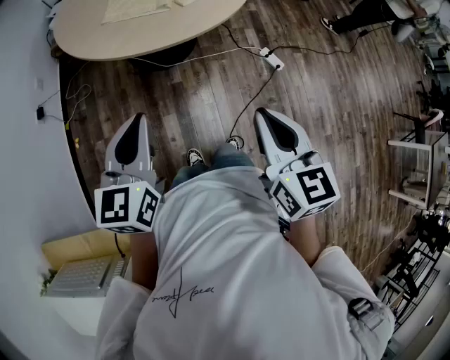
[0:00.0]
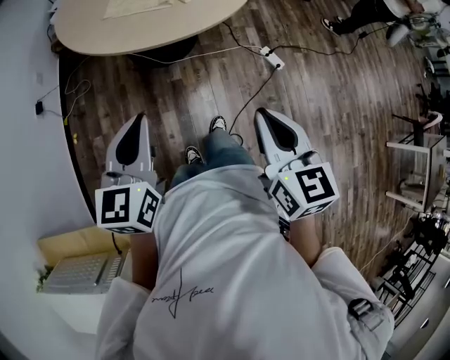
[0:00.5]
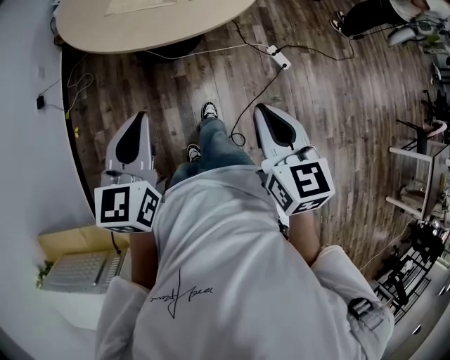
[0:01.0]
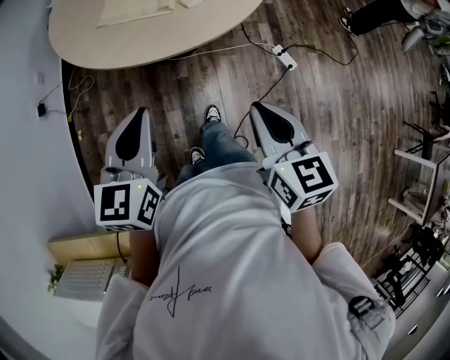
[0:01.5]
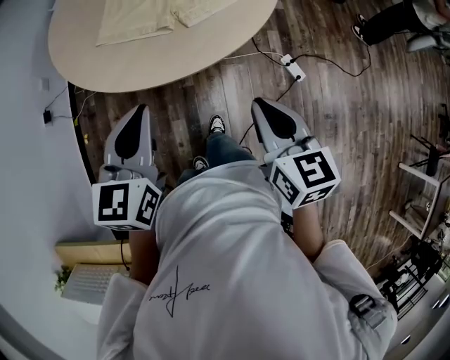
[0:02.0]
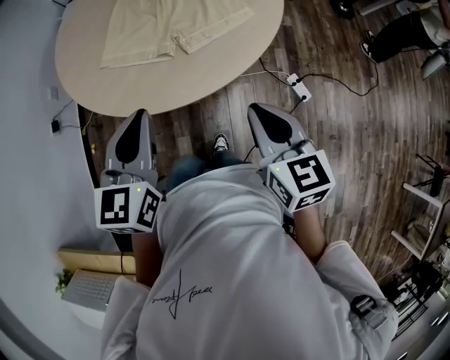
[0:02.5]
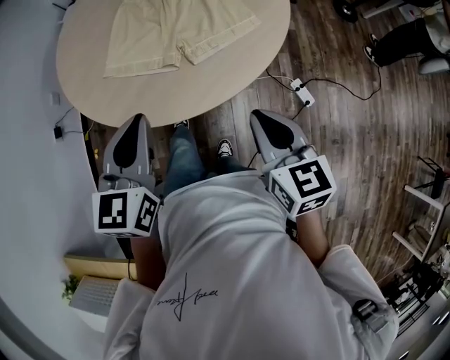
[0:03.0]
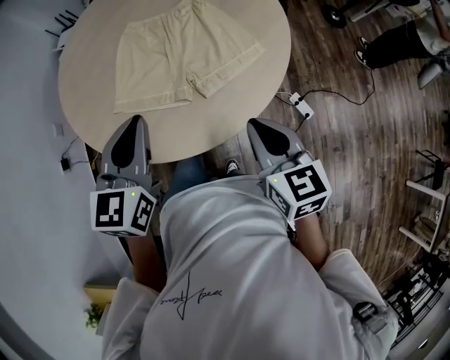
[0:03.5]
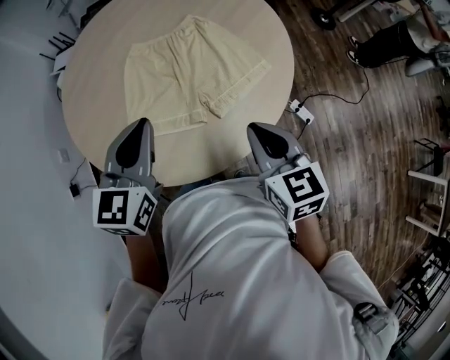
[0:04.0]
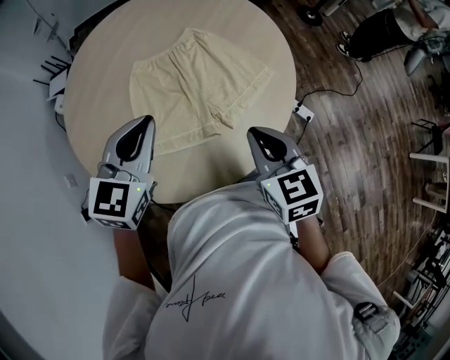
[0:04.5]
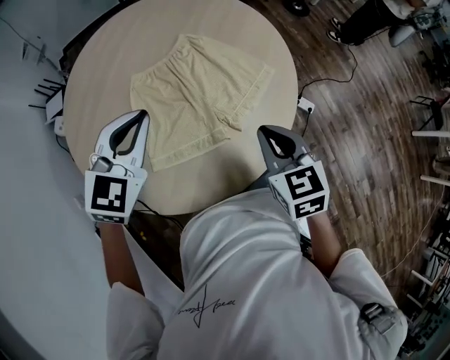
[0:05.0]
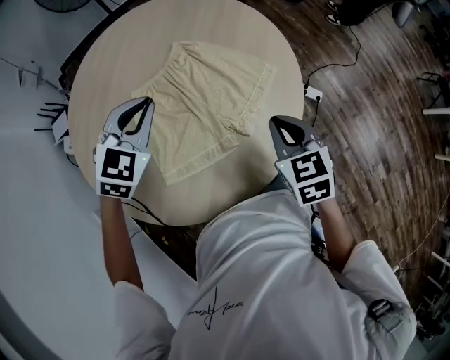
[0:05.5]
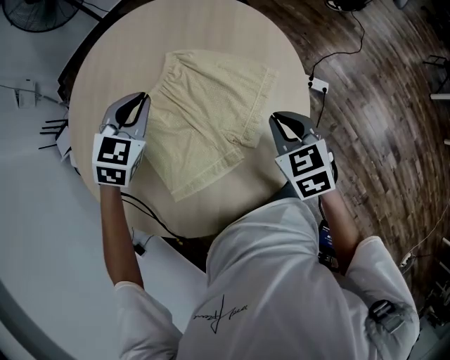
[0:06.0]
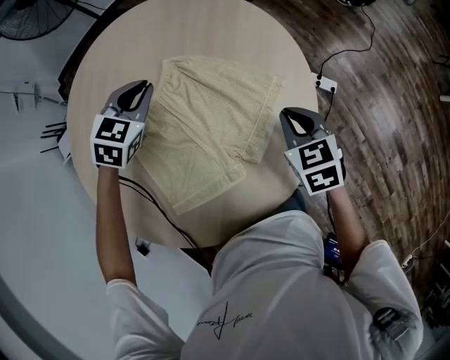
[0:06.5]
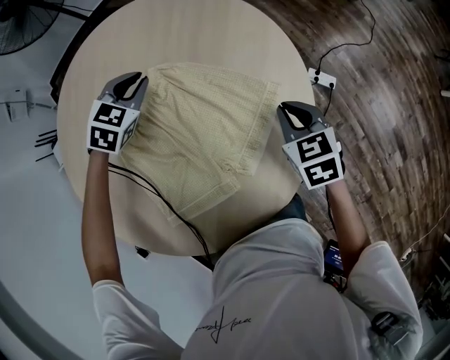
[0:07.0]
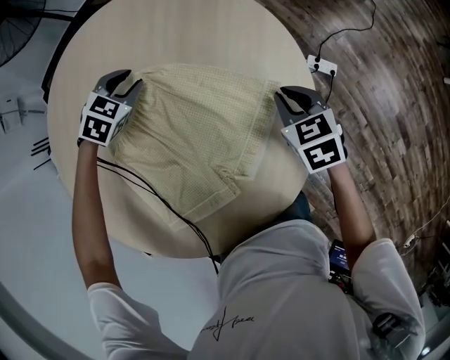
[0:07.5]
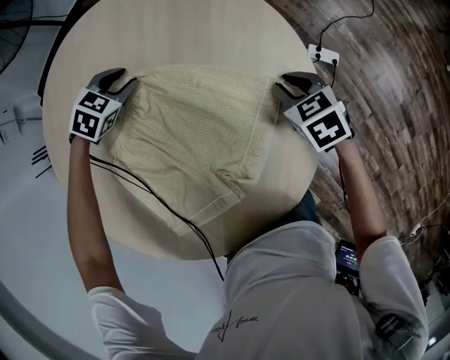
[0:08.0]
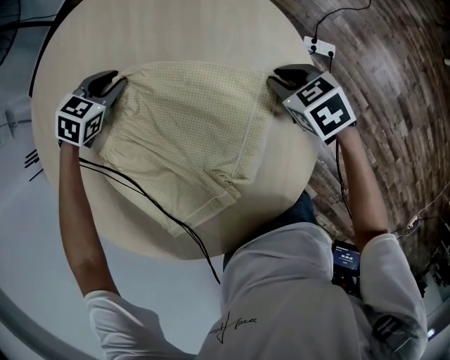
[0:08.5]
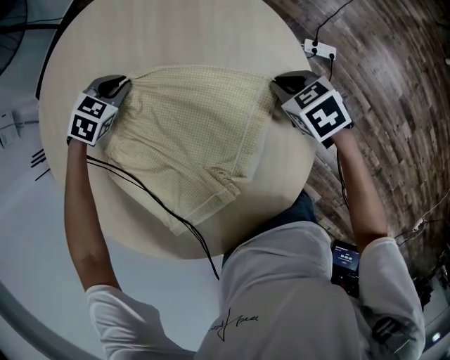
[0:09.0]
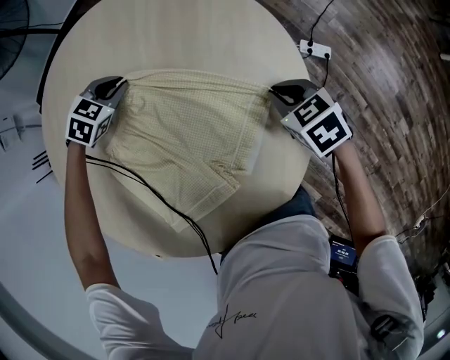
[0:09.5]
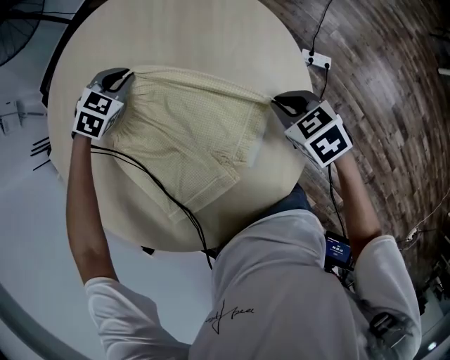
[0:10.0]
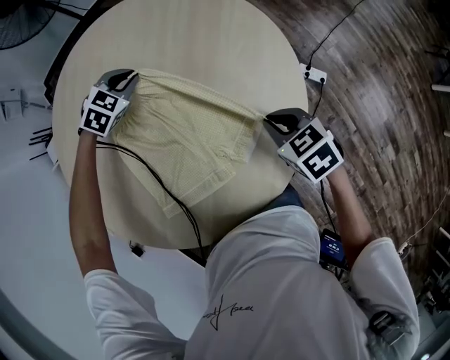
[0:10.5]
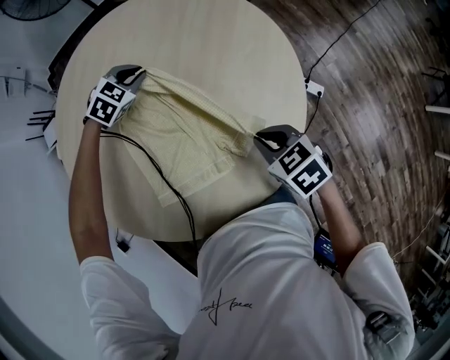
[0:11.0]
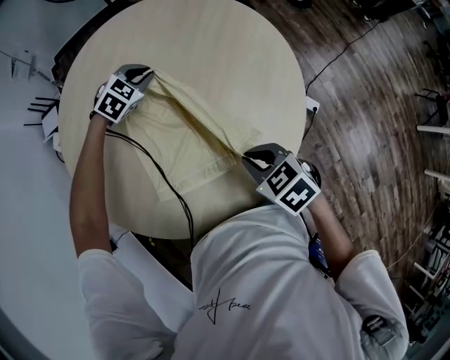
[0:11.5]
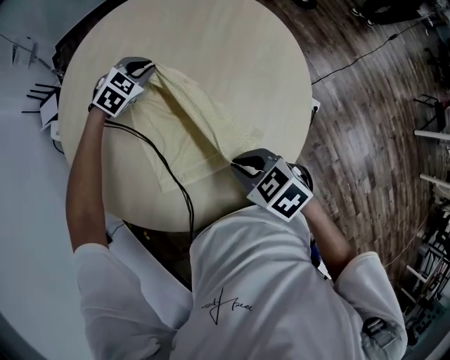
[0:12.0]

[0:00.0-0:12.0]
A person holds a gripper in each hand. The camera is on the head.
0:00.0 to 0:02.0: The two grippers go about 25 cm forward.
0:02.0 to 0:04.0: The grippers both shift forward by about 25 cm.
0:04.0 to 0:06.0: The left gripper changes place by approximately 30 cm, and turns by some 50 degrees. The right gripper ends up approximately 15 cm from where it was, and changes its angle by approximately 30 degrees.
0:06.0 to 0:08.0: Both grippers travel together downward and forward, roughly 25 cm. The left gripper turns by some 30 degrees, and opens up.
0:08.0 to 0:10.0: The left gripper shifts roughly 5 cm upward, while the right gripper moves backward and upward, approximately 10 cm.
0:10.0 to 0:12.0: The left gripper travels to the left and backward by about 15 cm; the right gripper travels to the left, backward and upward by about 30 cm, and turns by approximately 20 degrees.

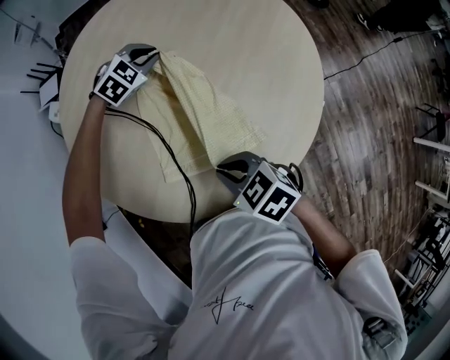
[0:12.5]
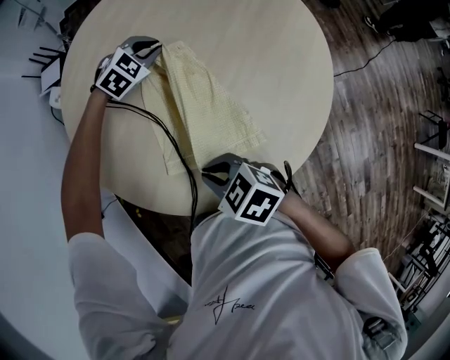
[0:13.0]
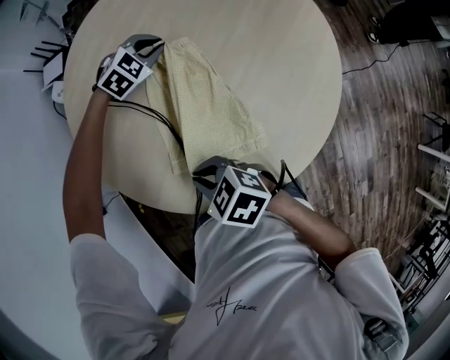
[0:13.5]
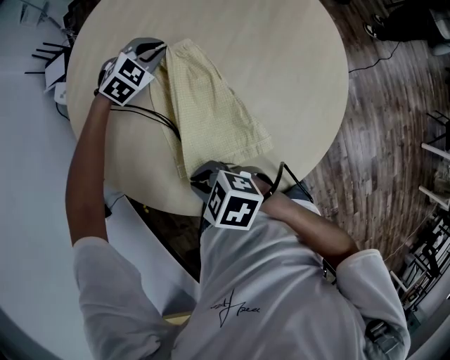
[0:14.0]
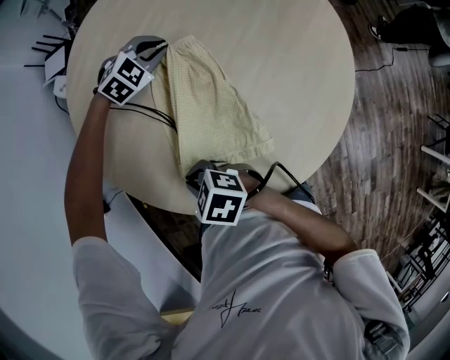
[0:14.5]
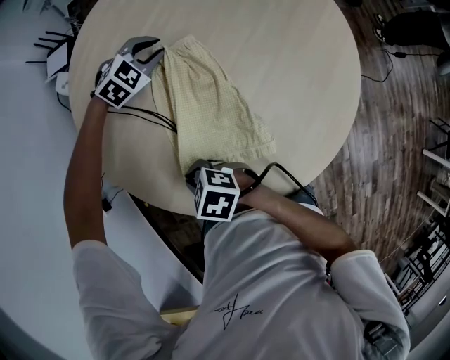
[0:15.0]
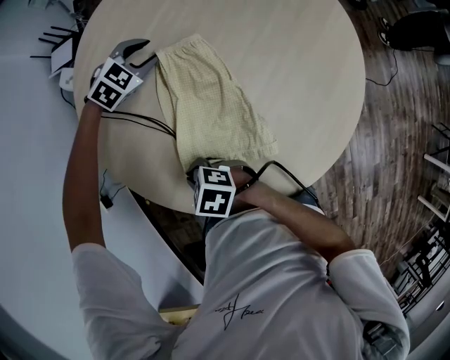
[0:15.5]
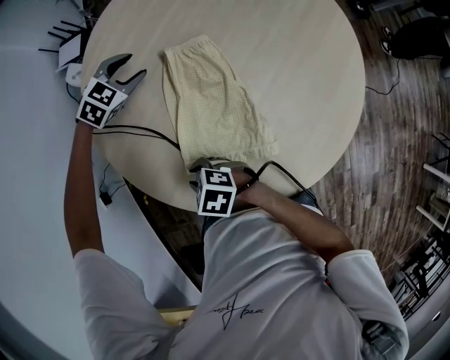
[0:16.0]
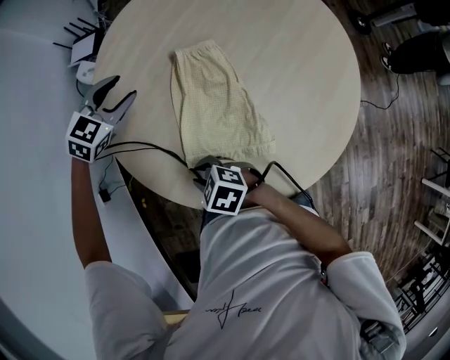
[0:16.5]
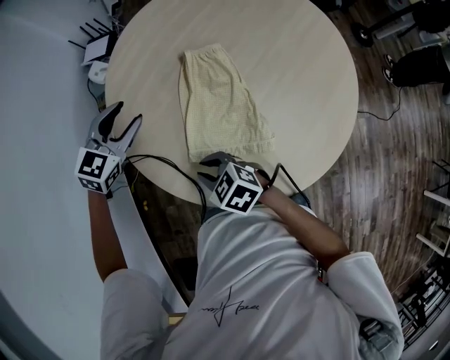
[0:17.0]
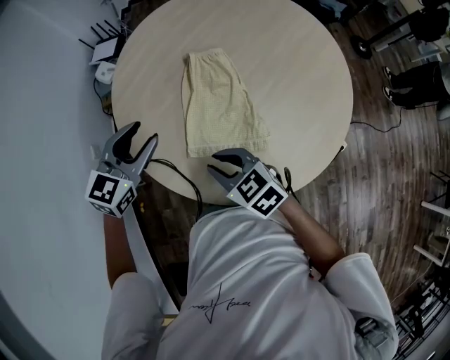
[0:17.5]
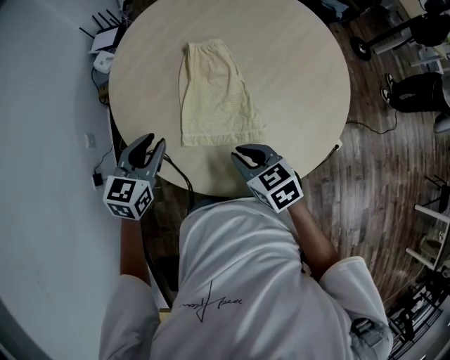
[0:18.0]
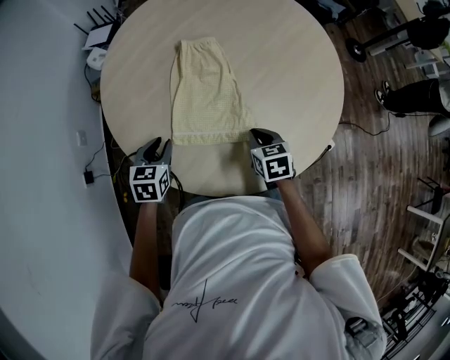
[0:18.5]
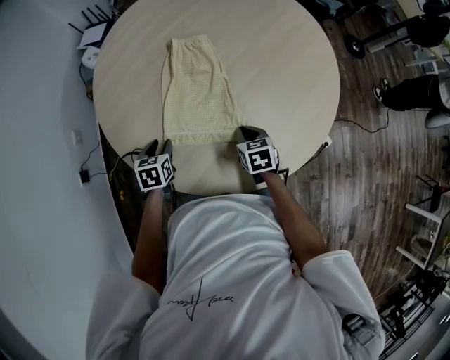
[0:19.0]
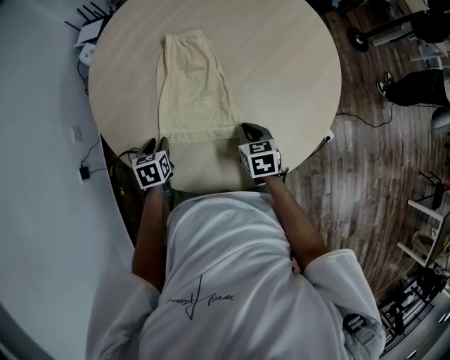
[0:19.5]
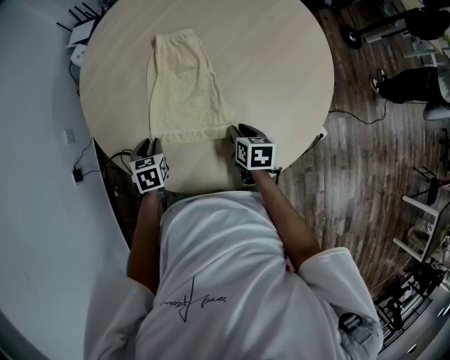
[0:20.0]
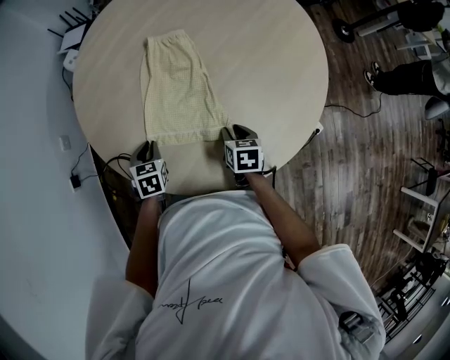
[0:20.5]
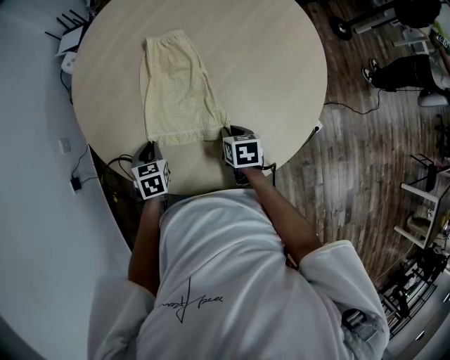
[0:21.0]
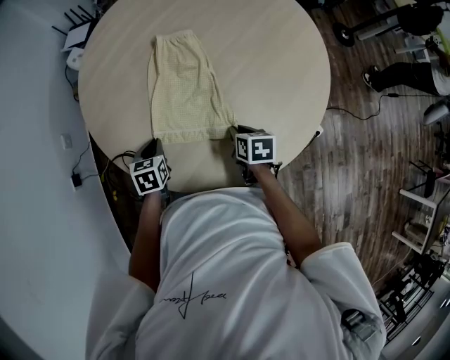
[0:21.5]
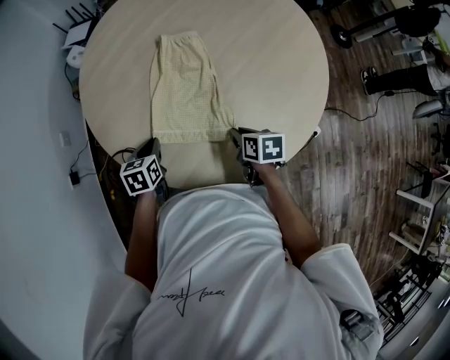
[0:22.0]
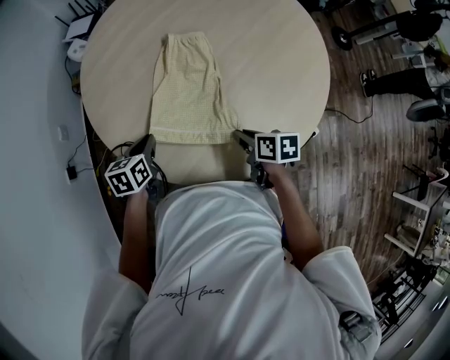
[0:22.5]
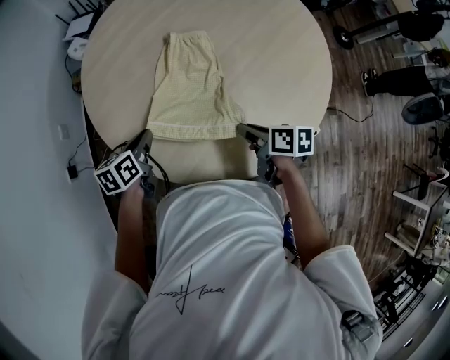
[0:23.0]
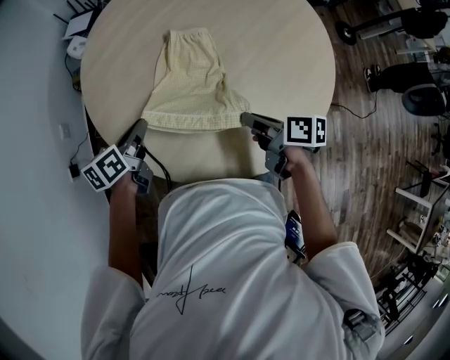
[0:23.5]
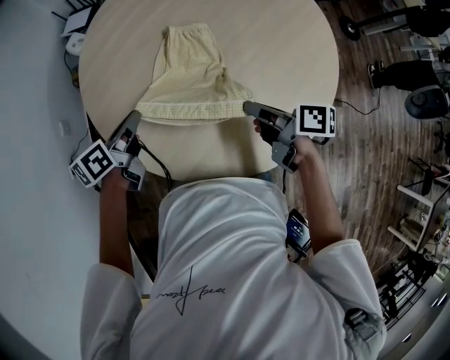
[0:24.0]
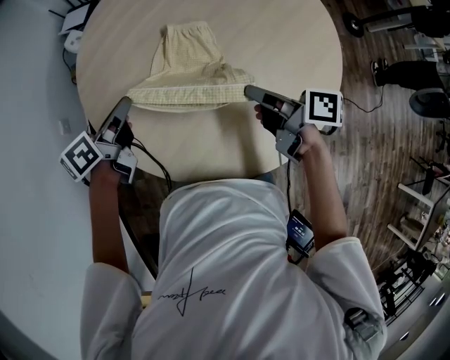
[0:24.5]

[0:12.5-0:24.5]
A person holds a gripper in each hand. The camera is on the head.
0:12.5 to 0:14.5: The right gripper changes place by approximately 15 cm, and turns by some 20 degrees, while the left gripper ends up about 5 cm from where it was.
0:14.5 to 0:16.5: The left gripper moves roughly 25 cm, changes its angle by approximately 20 degrees, and opens up.
0:16.5 to 0:18.5: The right gripper reaches some 10 cm upward, then returns, and turns by approximately 50 degrees. Meanwhile the left gripper shifts by some 25 cm, rotates approximately 40 degrees, and closes.
0:18.5 to 0:20.5: The two grippers go some 5 cm downward. The right gripper opens.
0:20.5 to 0:22.5: Both grippers travel together upward, about 5 cm. The right gripper swivels approximately 20 degrees. Meanwhile the left gripper turns by roughly 30 degrees.
0:22.5 to 0:24.5: Both grippers travel together upward and forward, approximately 10 cm. The right gripper swivels roughly 30 degrees; the left gripper rotates about 30 degrees.

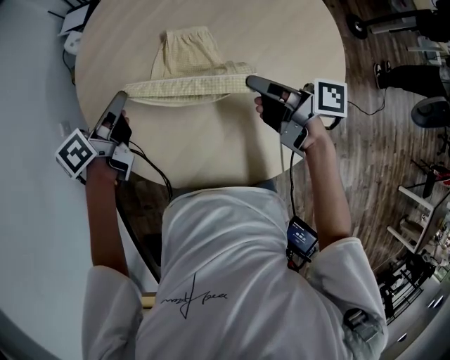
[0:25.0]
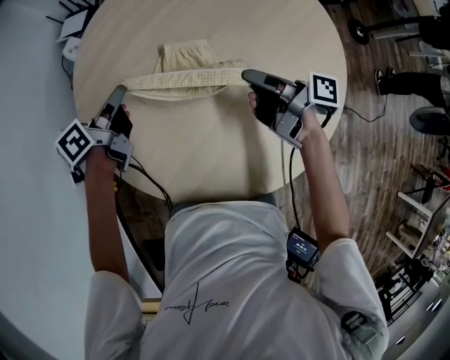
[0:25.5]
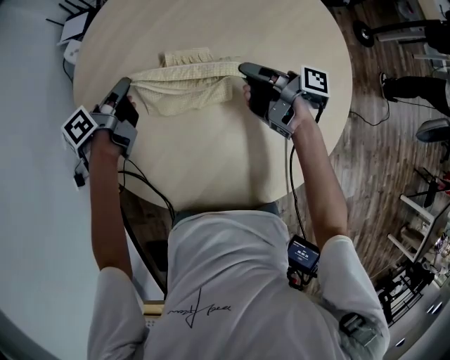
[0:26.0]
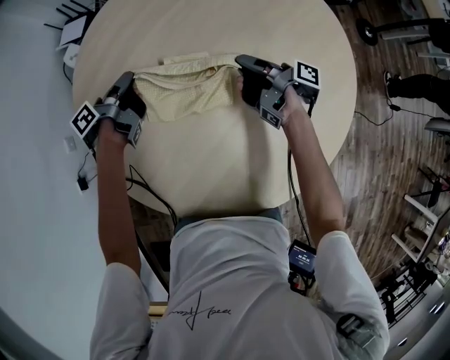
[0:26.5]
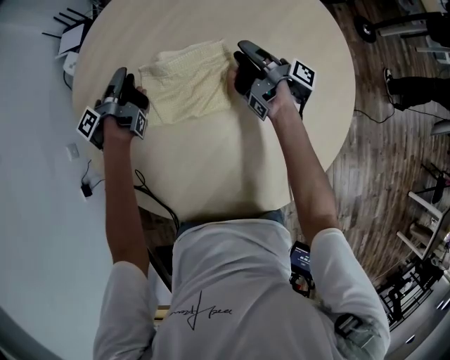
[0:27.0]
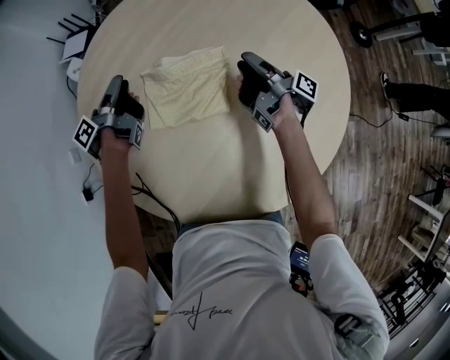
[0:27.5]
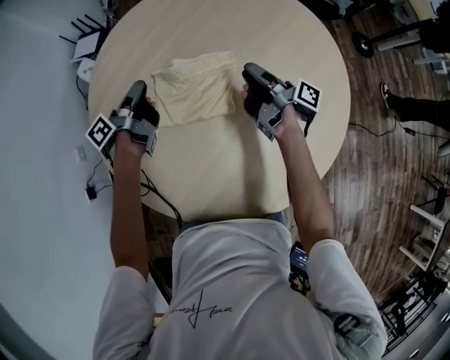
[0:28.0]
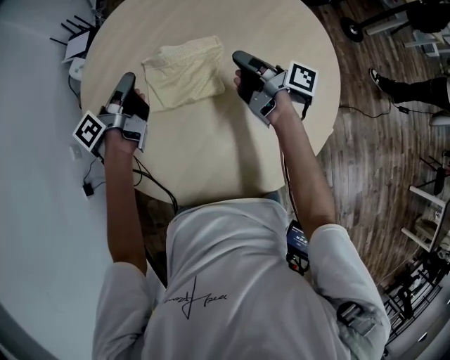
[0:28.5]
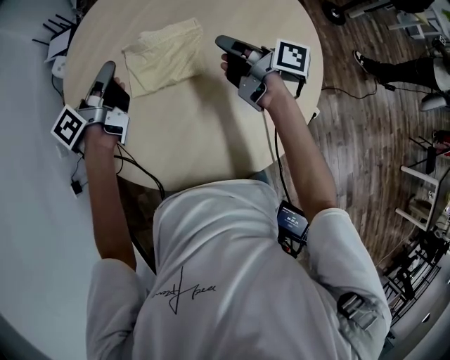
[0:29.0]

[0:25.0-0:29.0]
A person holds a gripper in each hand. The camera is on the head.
0:25.0 to 0:27.0: Both grippers travel together forward and downward, roughly 25 cm. The left gripper turns by about 40 degrees, and opens its fingers; the right gripper swivels some 40 degrees, and opens.
0:27.0 to 0:29.0: The left gripper shifts some 20 cm upward and backward, turns by approximately 30 degrees, and closes, while the right gripper moves backward and upward, approximately 15 cm, turns by roughly 30 degrees, and closes up.
